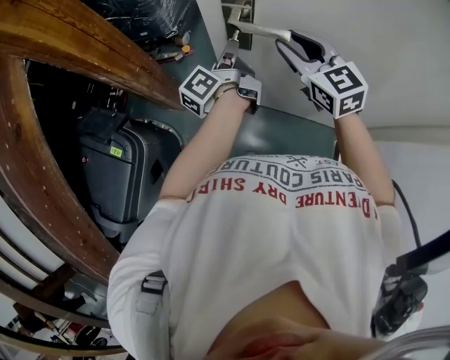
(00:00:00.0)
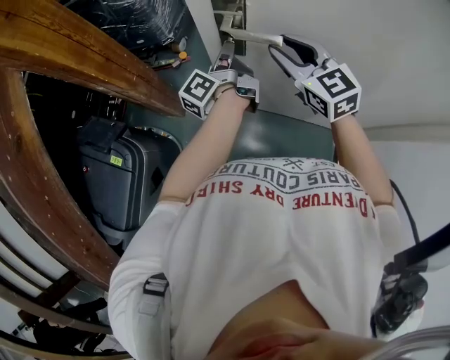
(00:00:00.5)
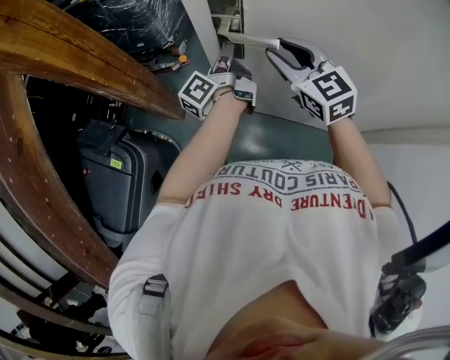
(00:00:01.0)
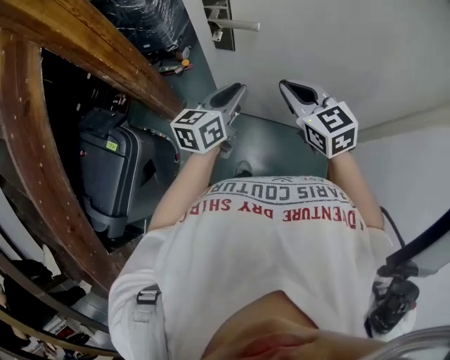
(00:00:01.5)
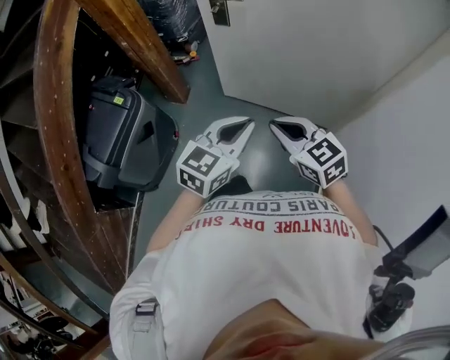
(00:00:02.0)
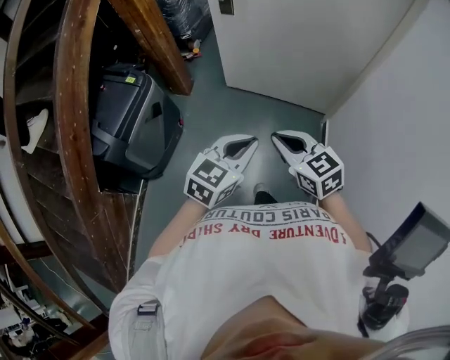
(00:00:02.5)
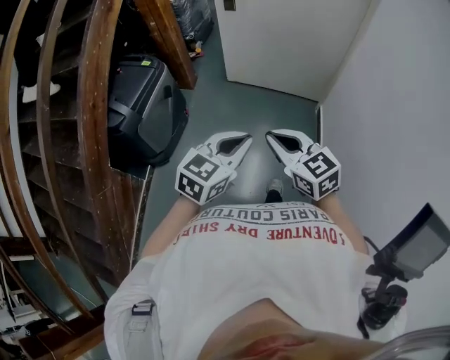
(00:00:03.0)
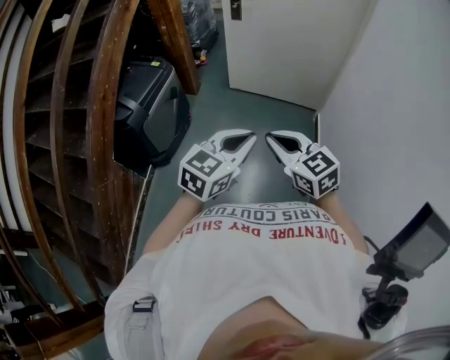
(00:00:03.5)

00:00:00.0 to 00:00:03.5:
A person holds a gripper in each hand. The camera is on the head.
00:00:00.0 to 00:00:02.0: The pair of grippers is taken backward, about 50 cm. The right gripper closes. Meanwhile the left gripper rolls clockwise, seen from behind, by some 80 degrees.
00:00:02.0 to 00:00:03.5: Both grippers are carried backward, some 50 cm.

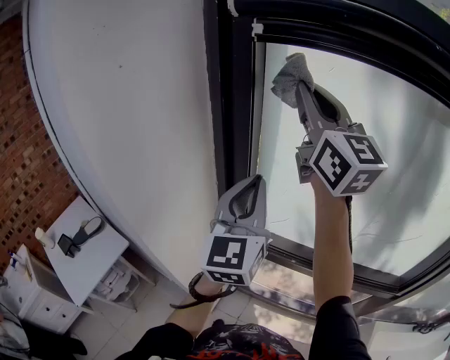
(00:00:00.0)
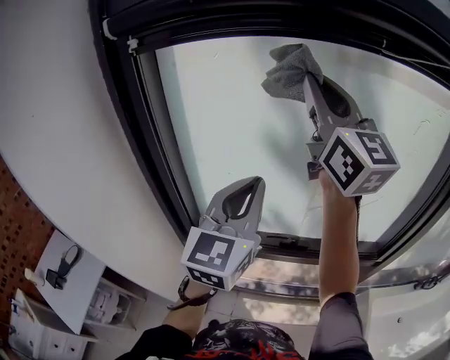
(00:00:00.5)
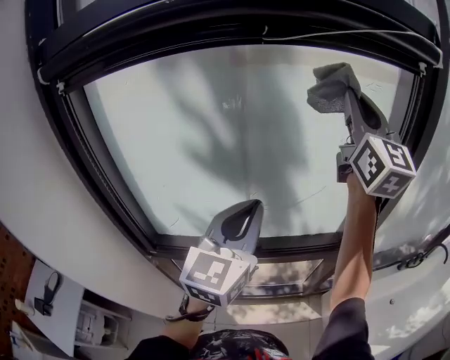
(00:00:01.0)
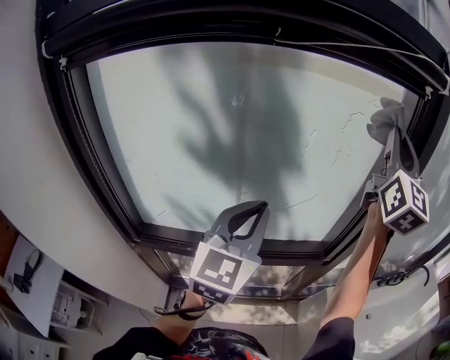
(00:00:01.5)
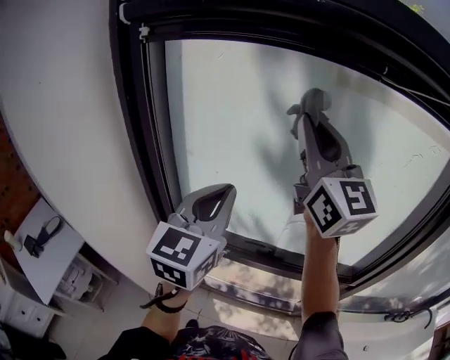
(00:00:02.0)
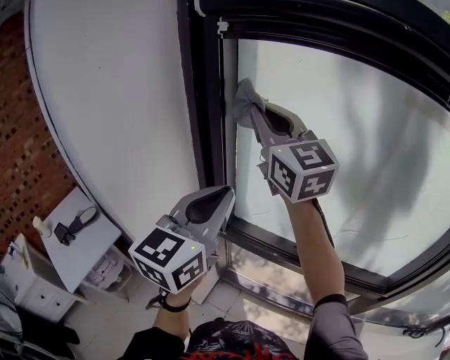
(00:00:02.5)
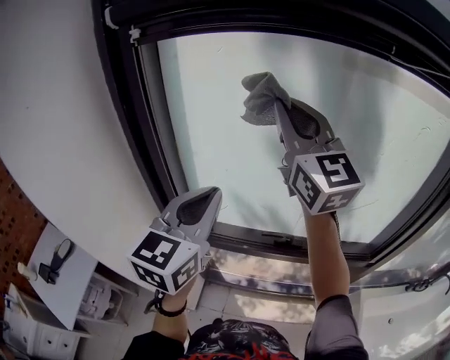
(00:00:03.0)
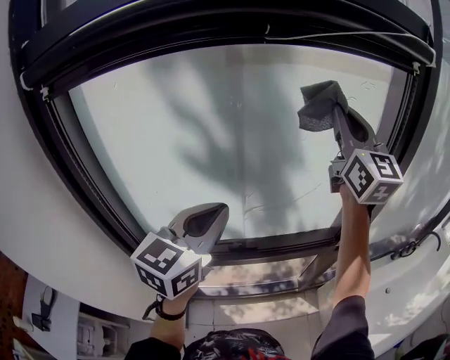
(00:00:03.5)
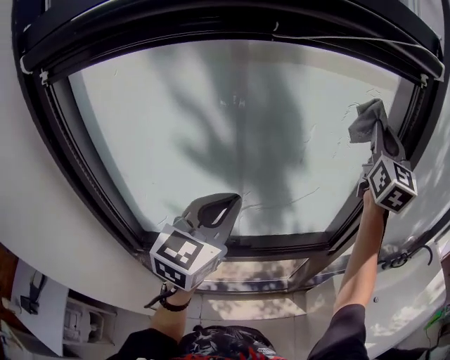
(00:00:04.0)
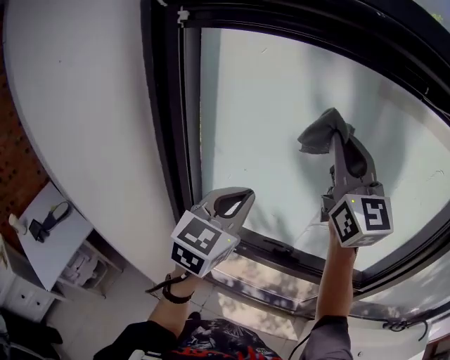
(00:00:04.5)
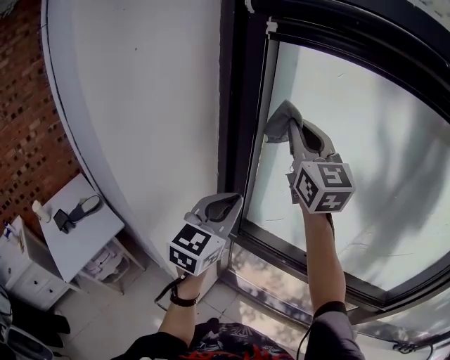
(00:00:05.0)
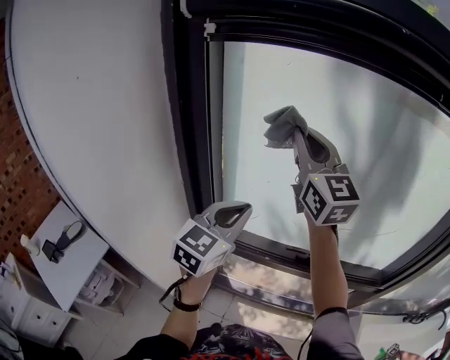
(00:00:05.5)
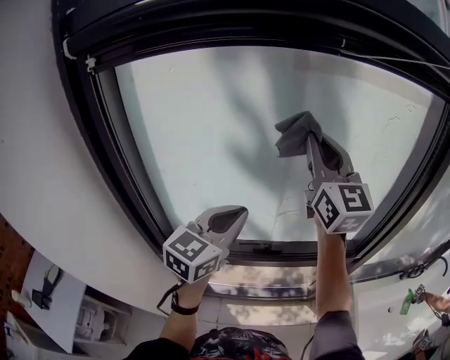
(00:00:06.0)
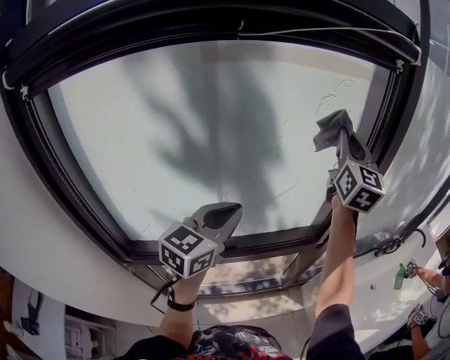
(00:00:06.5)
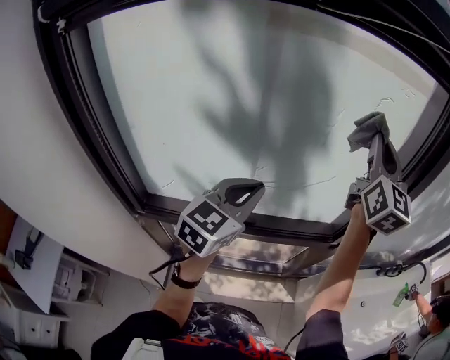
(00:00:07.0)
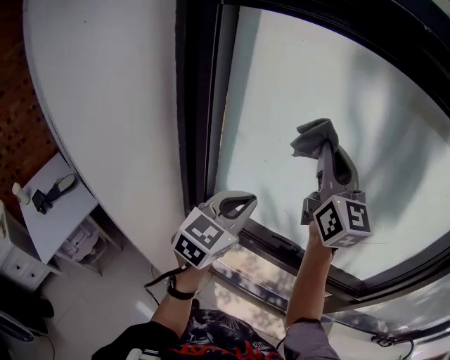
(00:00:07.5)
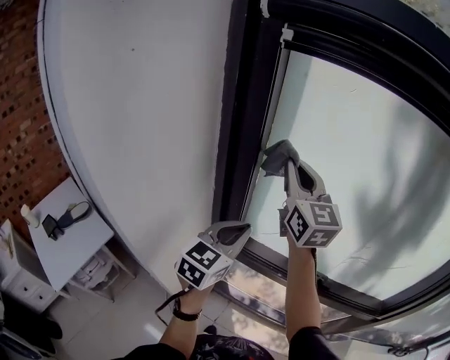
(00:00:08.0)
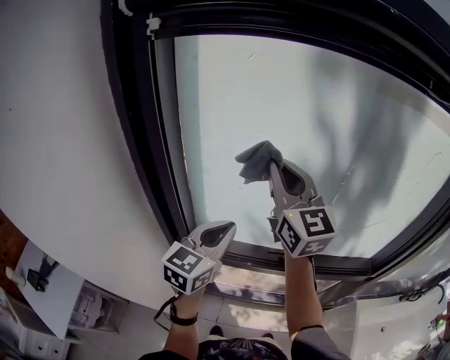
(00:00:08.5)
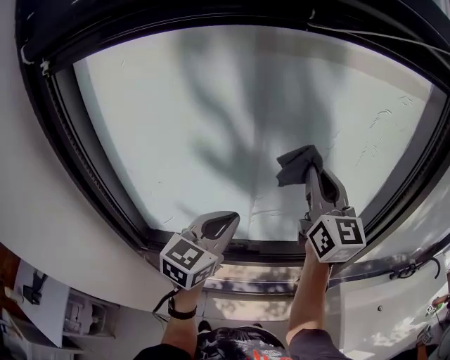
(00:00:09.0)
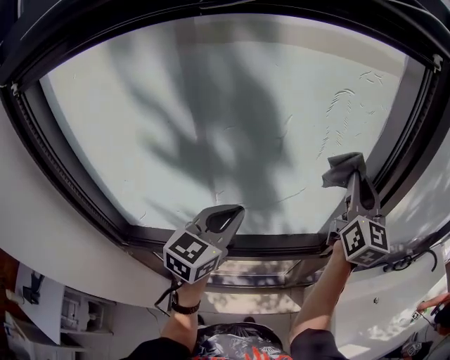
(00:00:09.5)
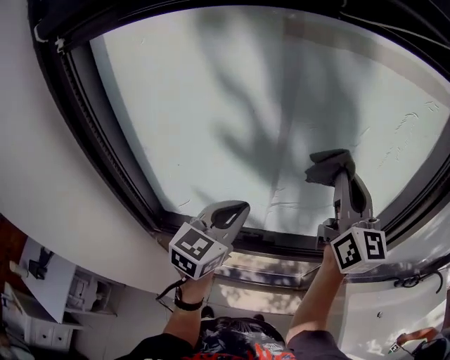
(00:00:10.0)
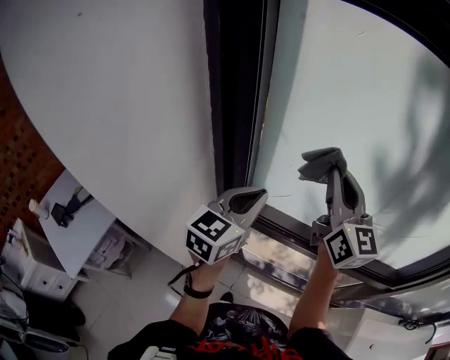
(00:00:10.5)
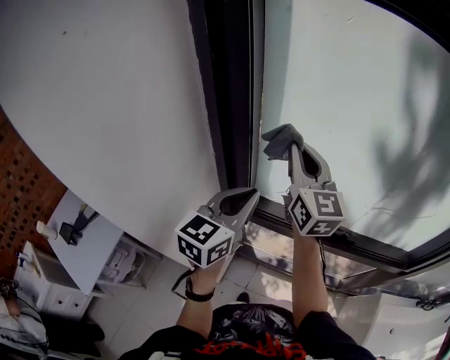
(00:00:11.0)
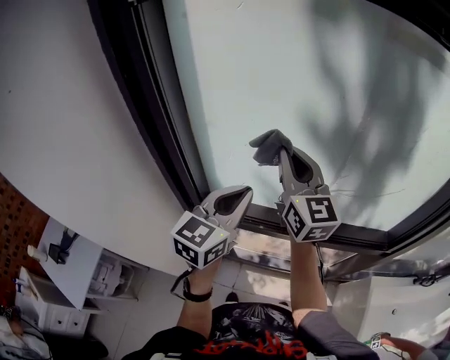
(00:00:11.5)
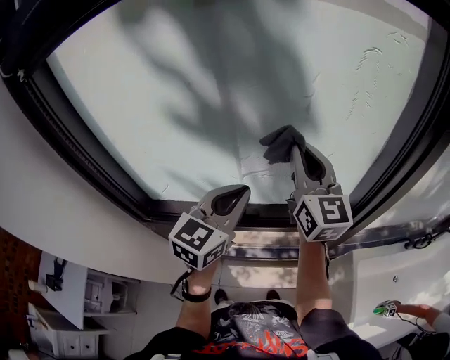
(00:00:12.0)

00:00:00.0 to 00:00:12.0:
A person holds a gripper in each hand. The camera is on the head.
00:00:00.0 to 00:00:02.0: The left gripper changes its angle by some 20 degrees.
00:00:02.0 to 00:00:04.0: The left gripper moves about 15 cm, and changes its angle by some 30 degrees; the right gripper ends up about 40 cm from where it was, and rotates roughly 50 degrees.
00:00:04.0 to 00:00:06.0: The right gripper rotates approximately 30 degrees.
00:00:06.0 to 00:00:08.0: The left gripper moves roughly 25 cm, and rotates approximately 30 degrees, while the right gripper changes place by roughly 35 cm, and rotates about 30 degrees.
00:00:08.0 to 00:00:10.0: The right gripper moves roughly 50 cm, and swivels approximately 30 degrees. The left gripper changes place by some 30 cm.
00:00:10.0 to 00:00:12.0: The right gripper heads downward, covering about 5 cm, and reaches about 40 cm to the left, then returns; the left gripper goes to the left and returns, some 30 cm each way.

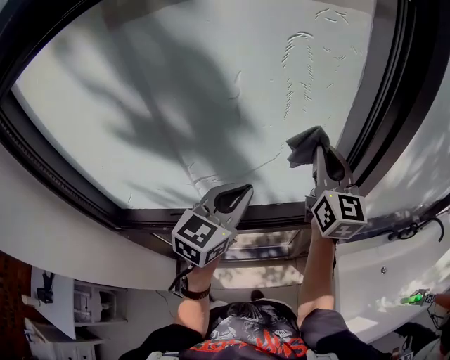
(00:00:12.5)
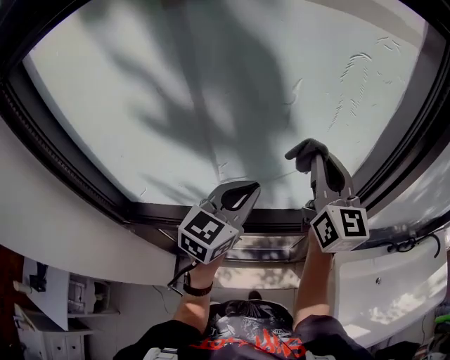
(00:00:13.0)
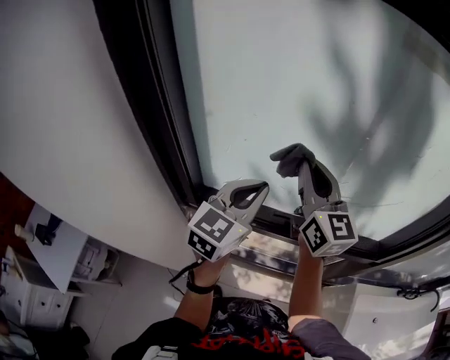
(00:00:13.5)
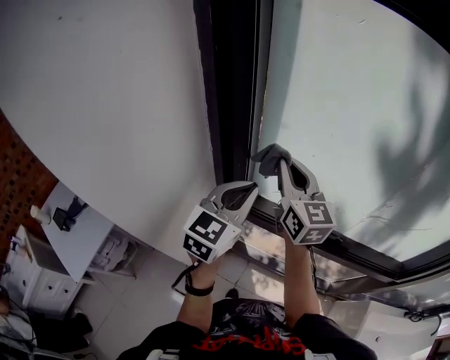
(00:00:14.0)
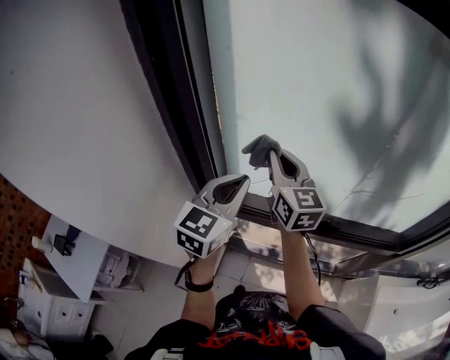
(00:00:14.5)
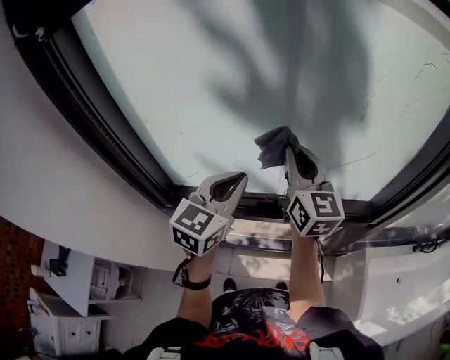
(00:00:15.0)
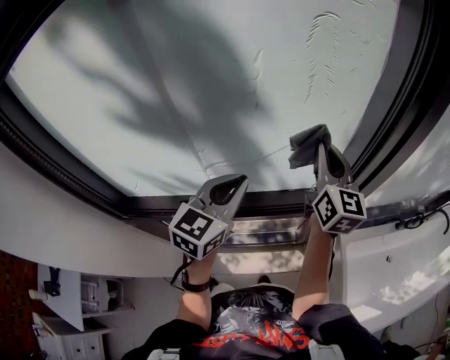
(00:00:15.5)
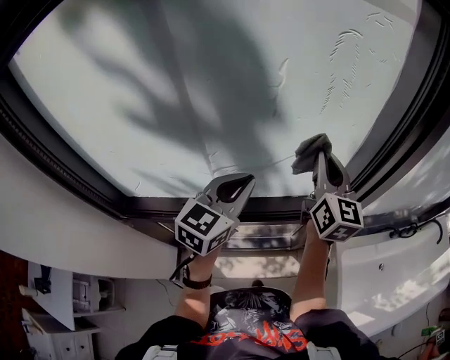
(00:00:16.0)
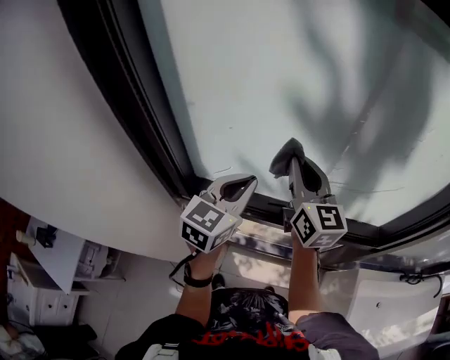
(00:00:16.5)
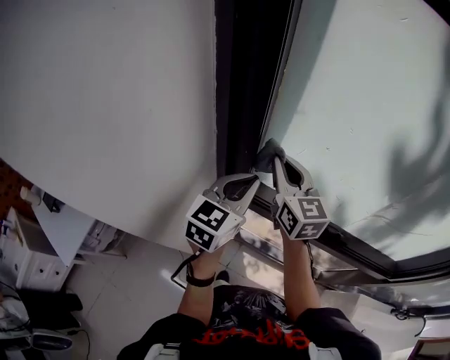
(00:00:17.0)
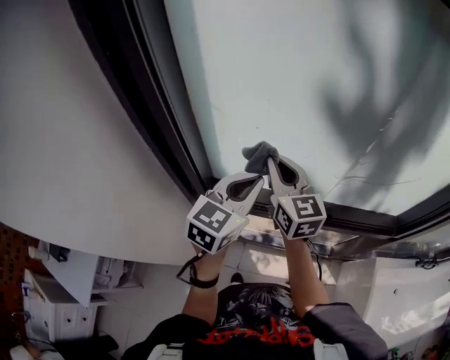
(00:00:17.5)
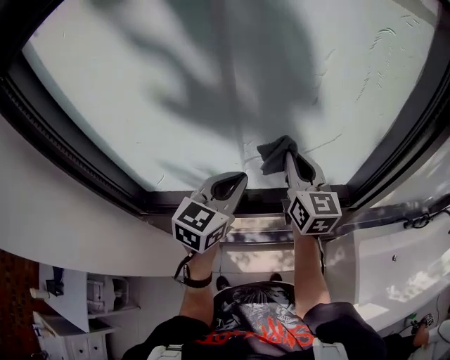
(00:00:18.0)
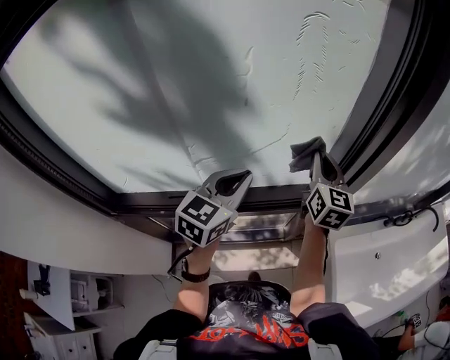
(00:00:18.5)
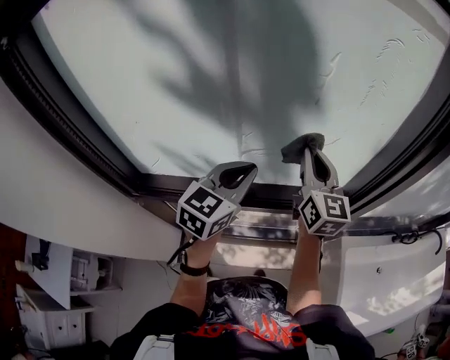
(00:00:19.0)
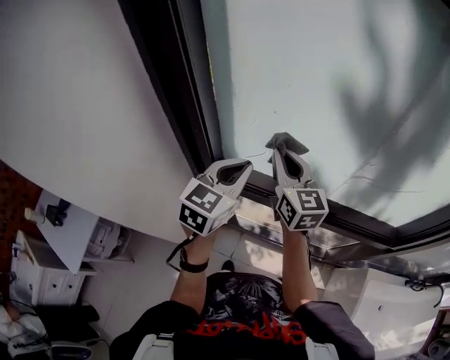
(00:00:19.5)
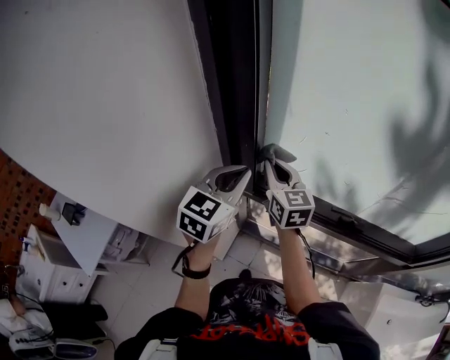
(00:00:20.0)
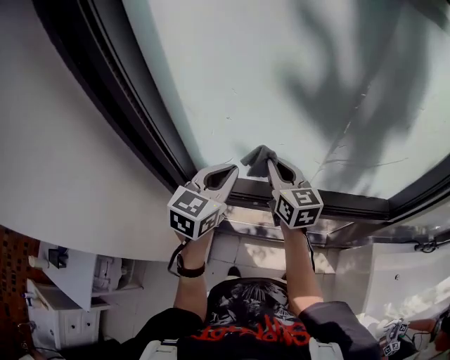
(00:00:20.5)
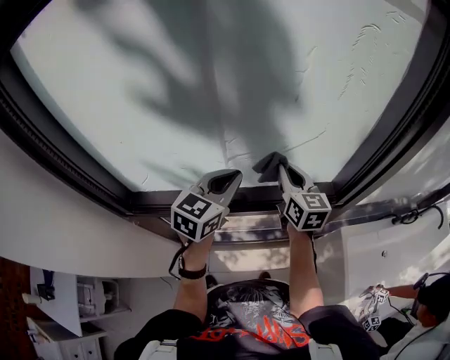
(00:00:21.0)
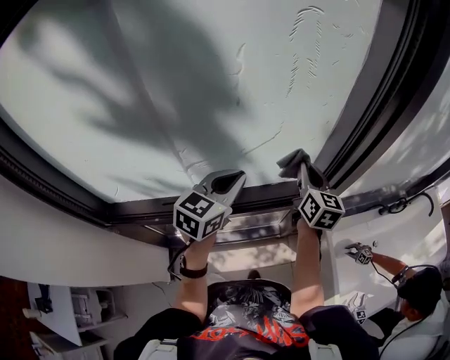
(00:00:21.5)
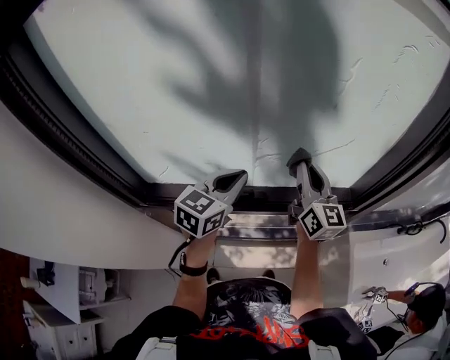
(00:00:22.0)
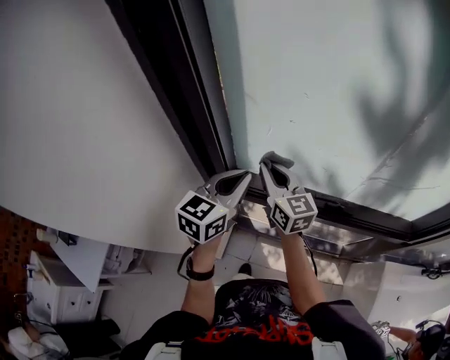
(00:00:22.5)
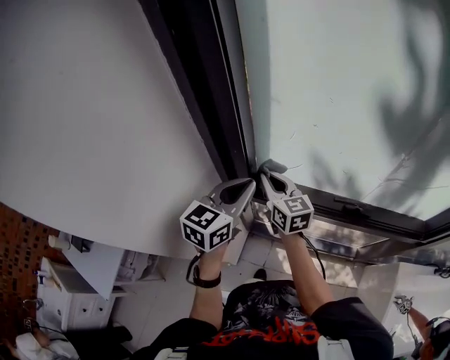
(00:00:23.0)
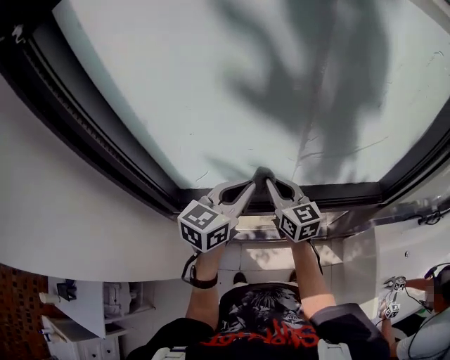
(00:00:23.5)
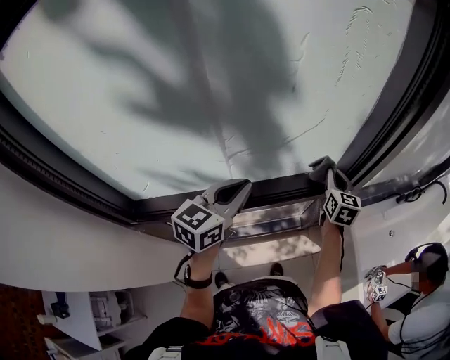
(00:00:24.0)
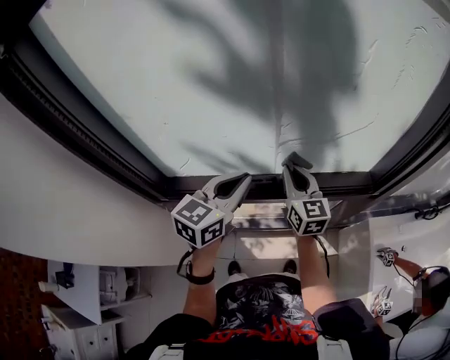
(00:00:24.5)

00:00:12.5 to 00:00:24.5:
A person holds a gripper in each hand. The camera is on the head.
00:00:12.5 to 00:00:14.5: Both grippers are carried approximately 50 cm. The right gripper turns by roughly 30 degrees; the left gripper changes its angle by roughly 20 degrees.
00:00:16.5 to 00:00:18.5: The left gripper shifts by about 35 cm. Meanwhile the right gripper shifts by roughly 40 cm, and swivels some 30 degrees.
00:00:18.5 to 00:00:20.5: The left gripper ends up roughly 40 cm from where it was. Meanwhile the right gripper changes place by some 50 cm, and swivels about 40 degrees.
00:00:22.5 to 00:00:24.5: The left gripper shifts by approximately 25 cm. The right gripper turns by approximately 30 degrees.
